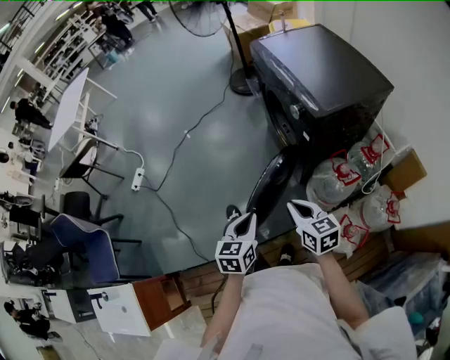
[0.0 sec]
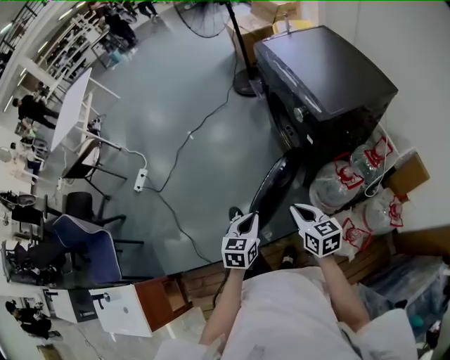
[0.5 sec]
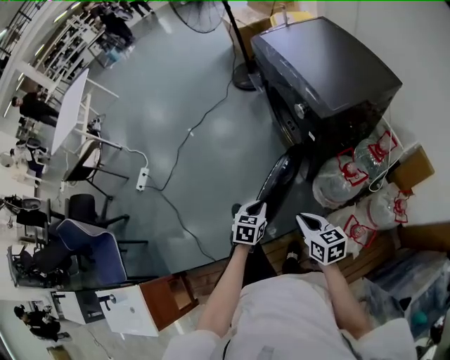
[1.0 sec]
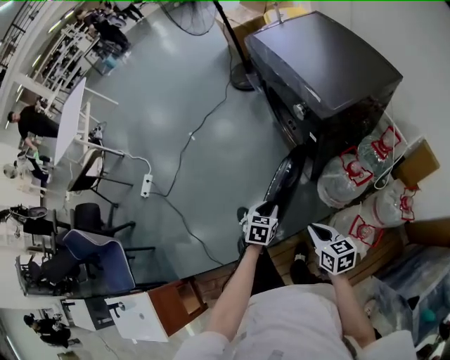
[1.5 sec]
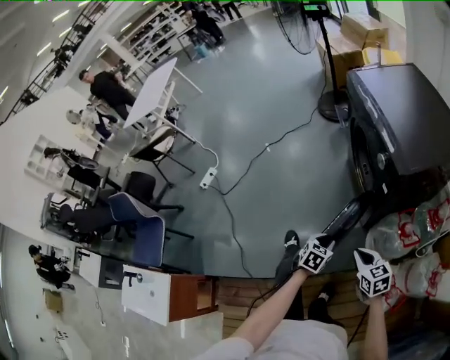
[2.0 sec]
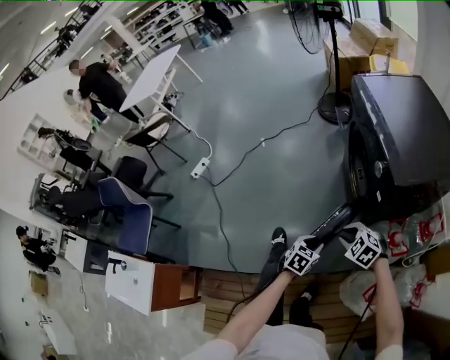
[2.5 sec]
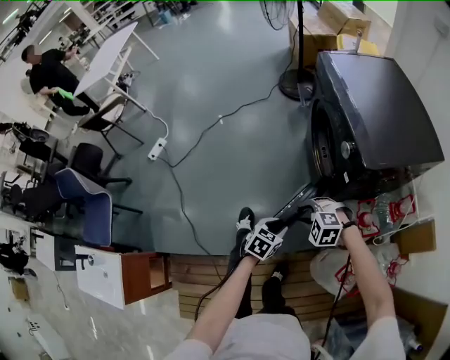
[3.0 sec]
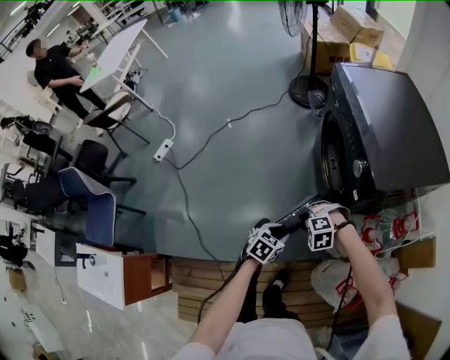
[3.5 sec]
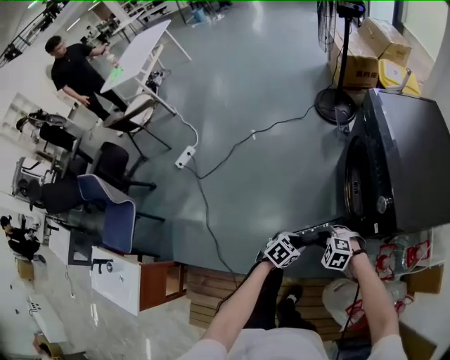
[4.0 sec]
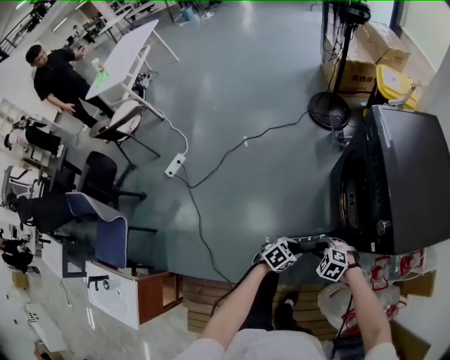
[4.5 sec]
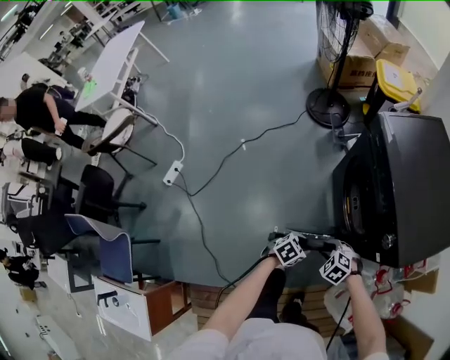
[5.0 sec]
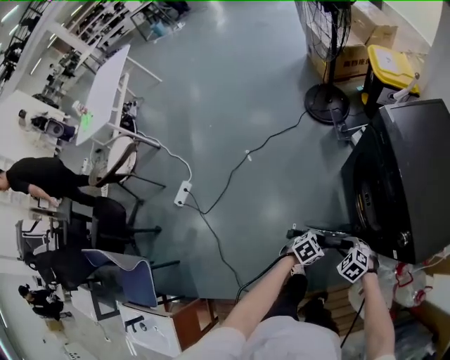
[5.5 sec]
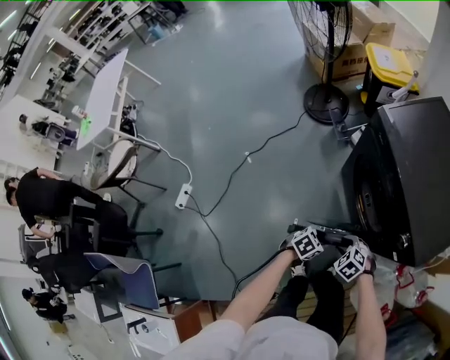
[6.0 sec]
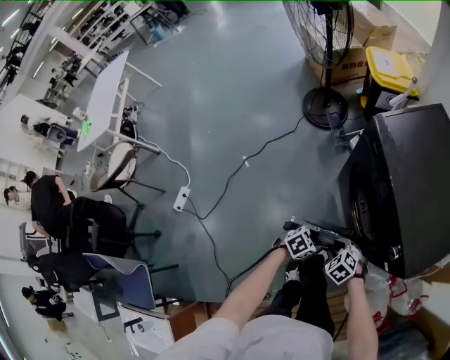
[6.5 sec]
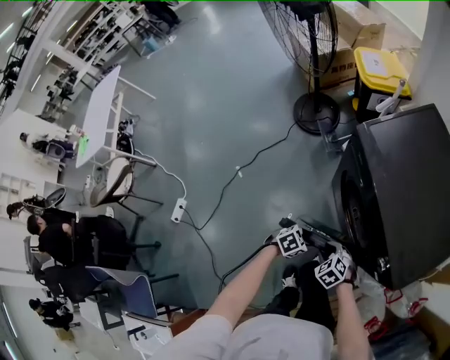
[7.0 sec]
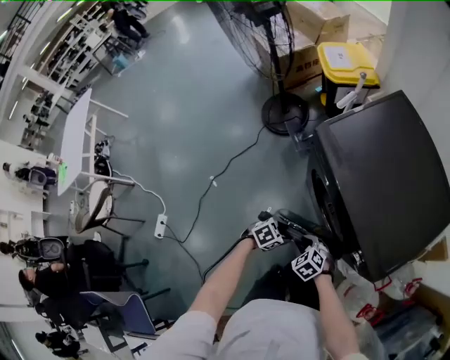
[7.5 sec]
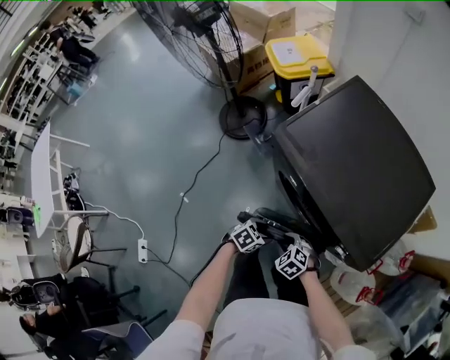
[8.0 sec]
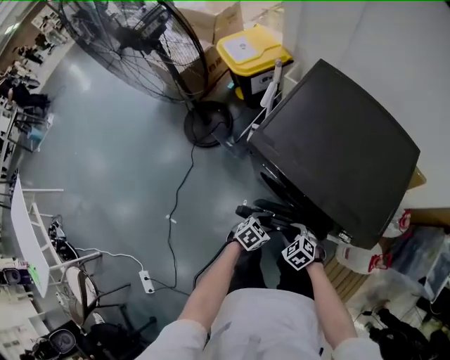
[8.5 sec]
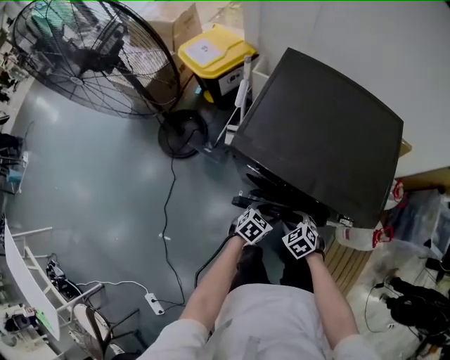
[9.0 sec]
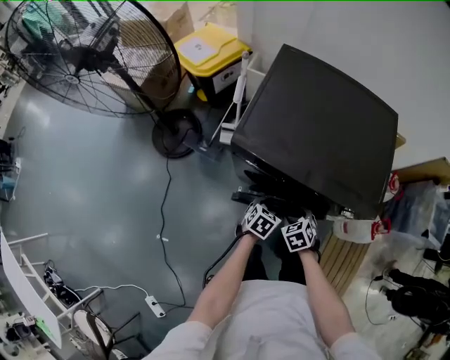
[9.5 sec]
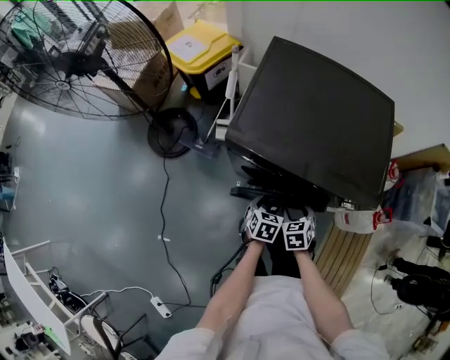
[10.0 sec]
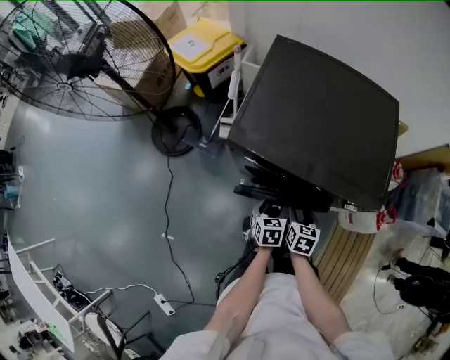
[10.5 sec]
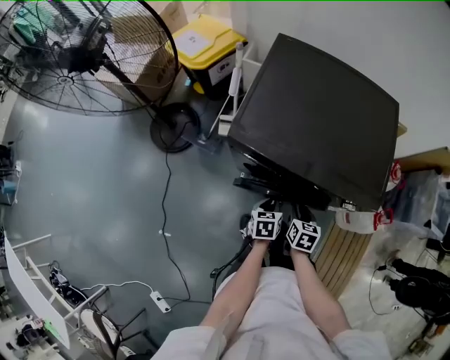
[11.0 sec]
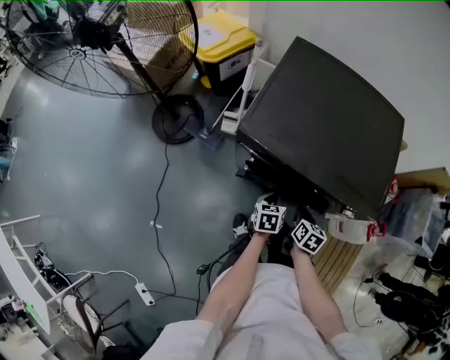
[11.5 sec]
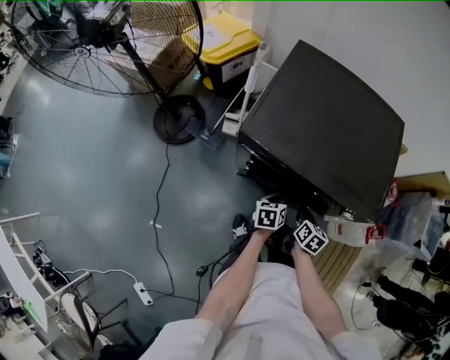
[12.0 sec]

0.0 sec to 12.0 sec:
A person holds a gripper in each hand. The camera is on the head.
0.0 sec to 2.0 sec: The left gripper travels downward and forward by roughly 15 cm, rotates some 30 degrees, and opens; the right gripper goes approximately 10 cm downward.
2.0 sec to 4.0 sec: The left gripper moves about 10 cm, while the right gripper changes place by approximately 20 cm, rotates around the line of its fingers by some 60 degrees, counterclockwise from behind, and opens its fingers.
4.0 sec to 6.0 sec: The right gripper ends up roughly 20 cm from where it was, and swivels about 40 degrees; the left gripper ends up about 20 cm from where it was, and turns by about 30 degrees.
6.0 sec to 8.0 sec: The right gripper changes place by roughly 15 cm, and swivels about 20 degrees. The left gripper moves some 15 cm, and turns by roughly 20 degrees.
8.0 sec to 10.0 sec: The right gripper shifts by approximately 10 cm, and rolls clockwise, seen from behind, by roughly 50 degrees; the left gripper moves about 10 cm.
10.0 sec to 12.0 sec: The right gripper is displaced to the right by some 5 cm, rolls clockwise, seen from behind, by some 40 degrees, and closes its fingers. The left gripper swivels about 30 degrees, and closes.

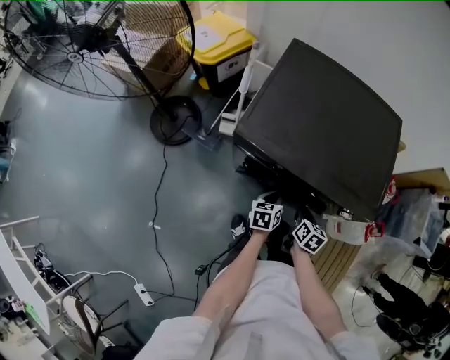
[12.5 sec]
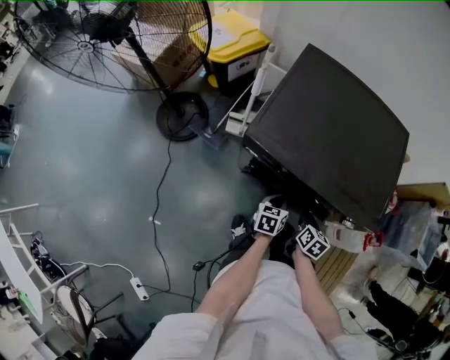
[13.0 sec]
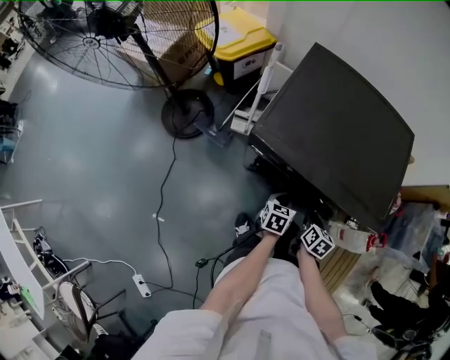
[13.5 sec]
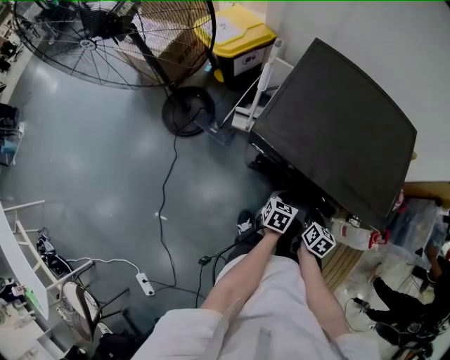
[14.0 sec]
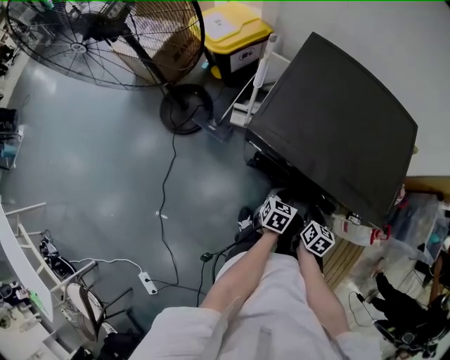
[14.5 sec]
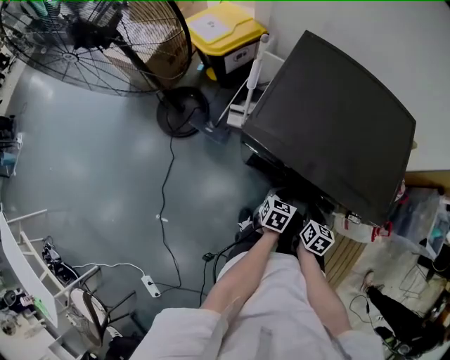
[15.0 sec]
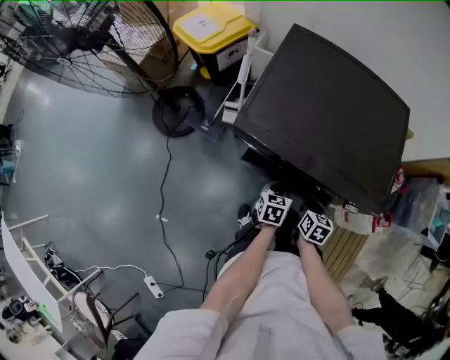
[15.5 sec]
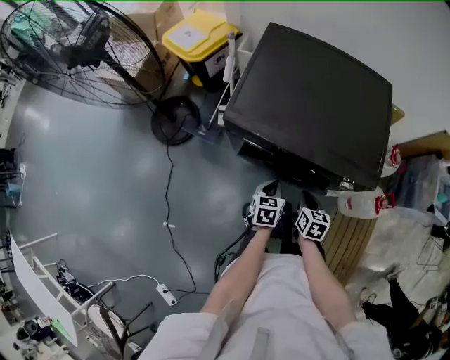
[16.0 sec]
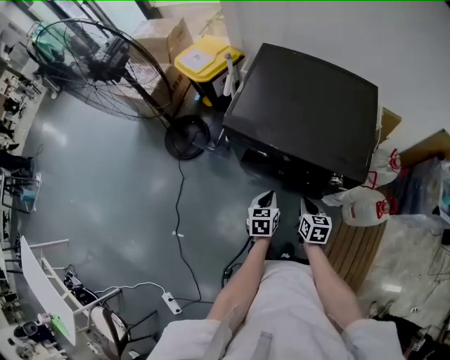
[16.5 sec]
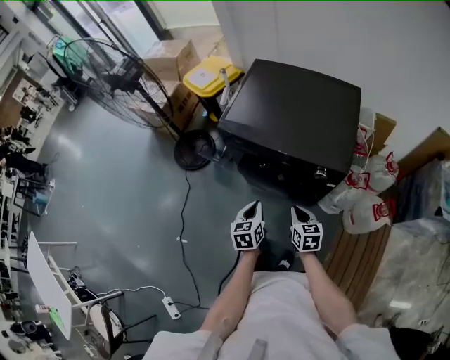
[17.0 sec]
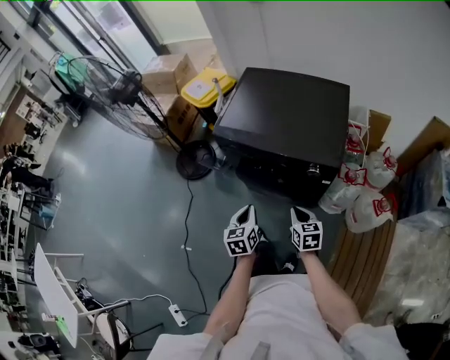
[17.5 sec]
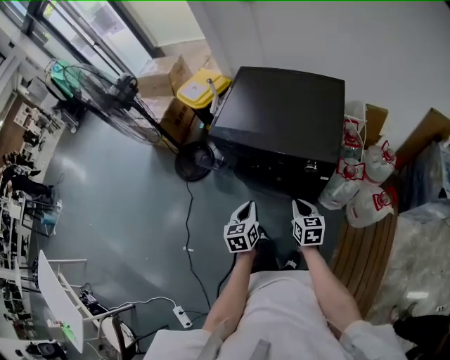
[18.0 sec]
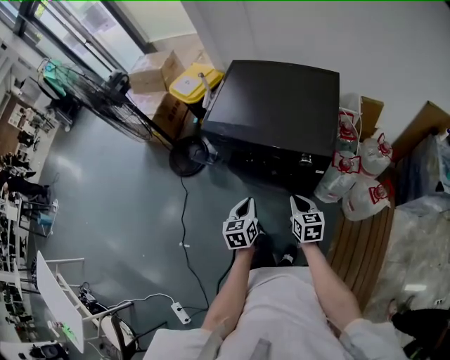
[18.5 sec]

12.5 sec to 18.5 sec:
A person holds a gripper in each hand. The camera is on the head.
12.5 sec to 14.5 sec: The grippers make only small movements.
14.5 sec to 16.5 sec: Both grippers travel together backward and upward, about 10 cm.
16.5 sec to 18.5 sec: Both grippers travel together backward and upward, approximately 10 cm.

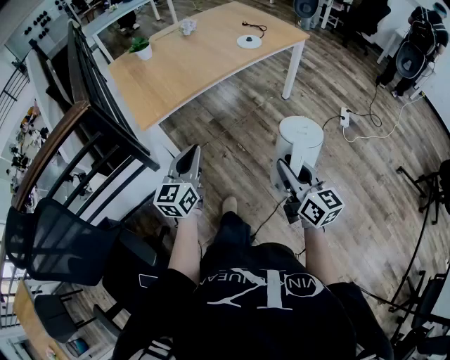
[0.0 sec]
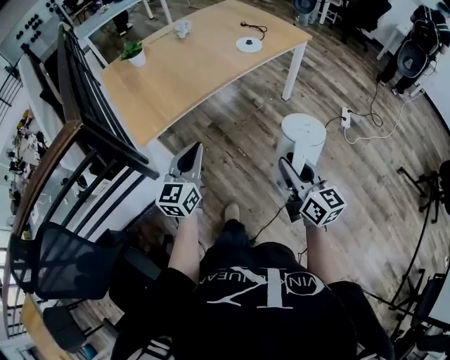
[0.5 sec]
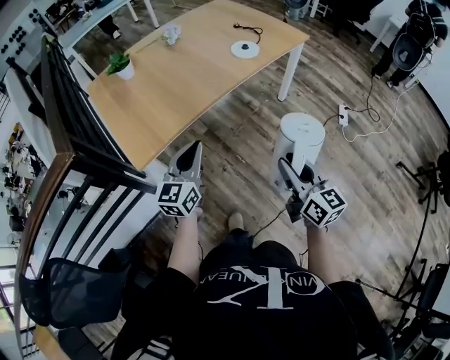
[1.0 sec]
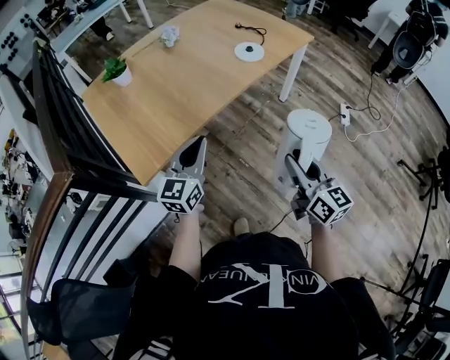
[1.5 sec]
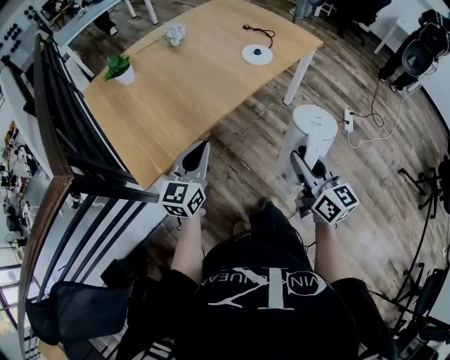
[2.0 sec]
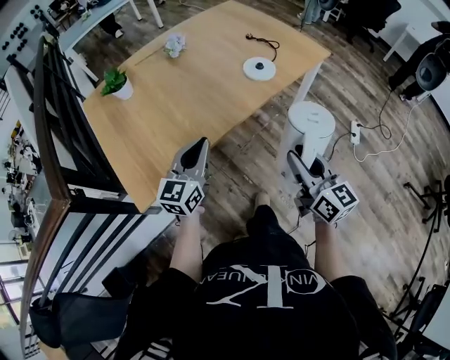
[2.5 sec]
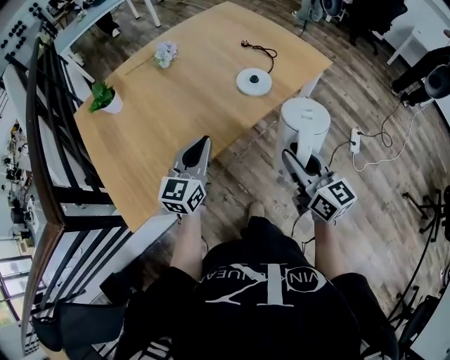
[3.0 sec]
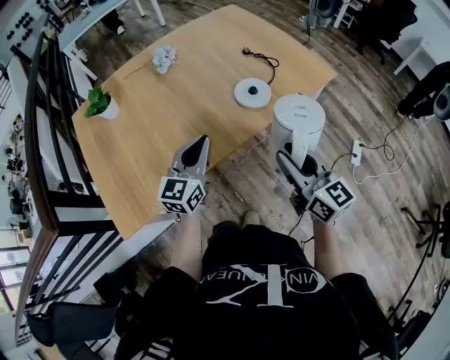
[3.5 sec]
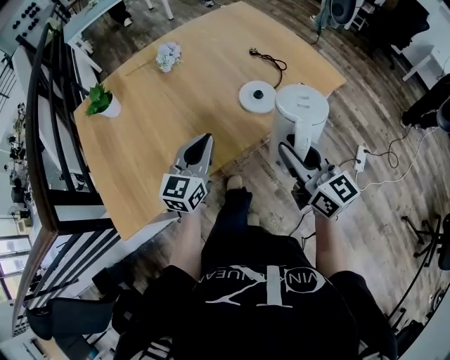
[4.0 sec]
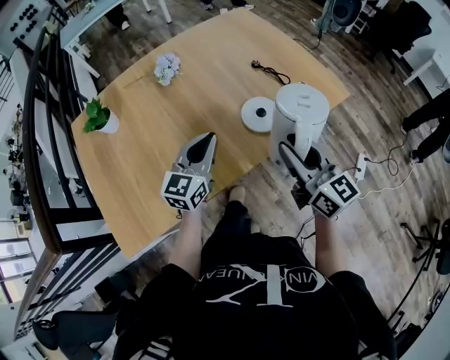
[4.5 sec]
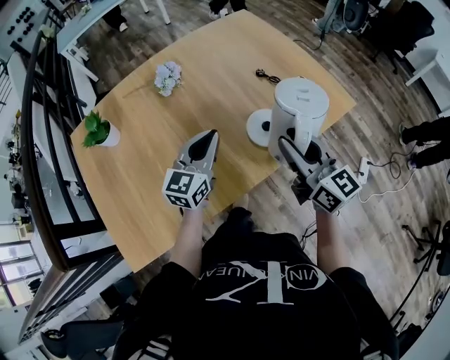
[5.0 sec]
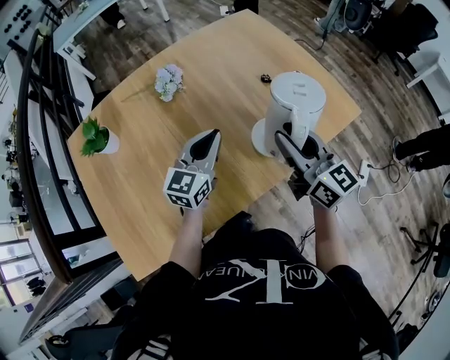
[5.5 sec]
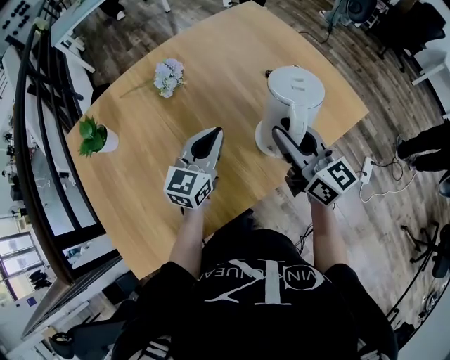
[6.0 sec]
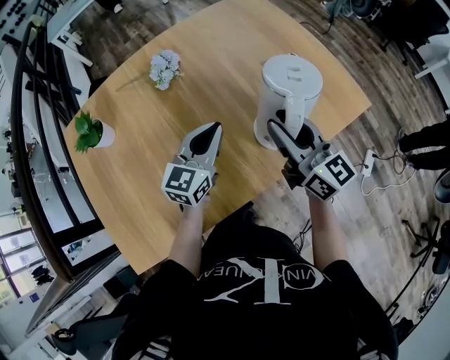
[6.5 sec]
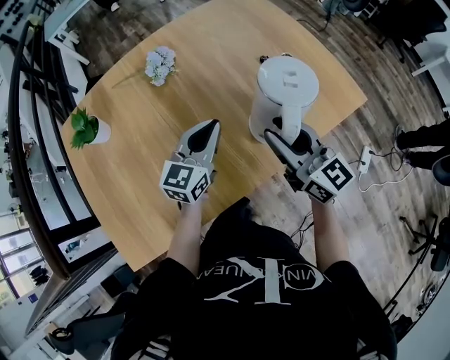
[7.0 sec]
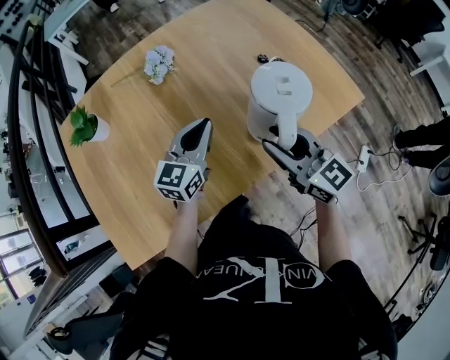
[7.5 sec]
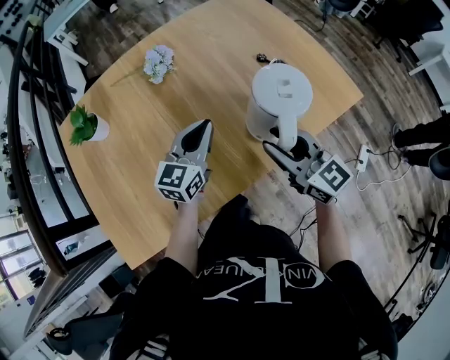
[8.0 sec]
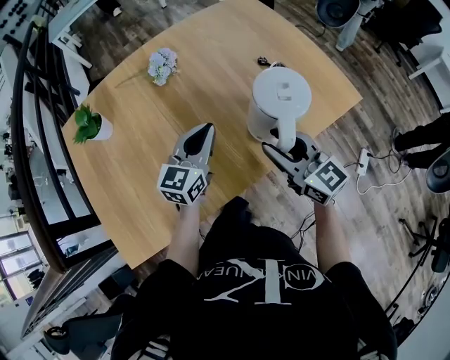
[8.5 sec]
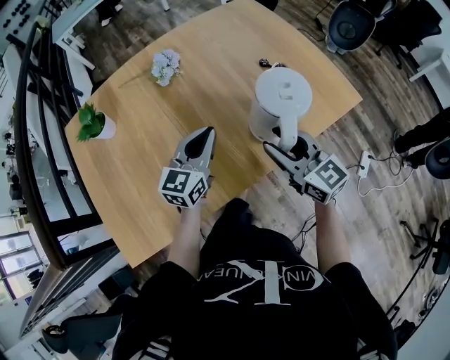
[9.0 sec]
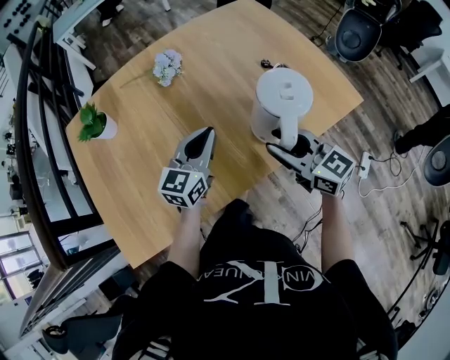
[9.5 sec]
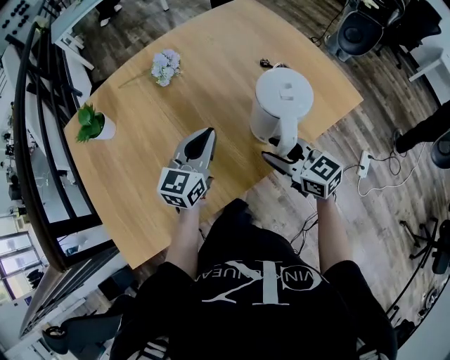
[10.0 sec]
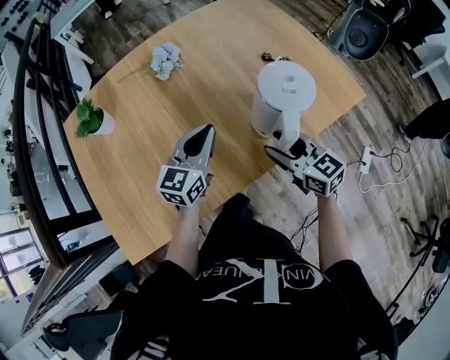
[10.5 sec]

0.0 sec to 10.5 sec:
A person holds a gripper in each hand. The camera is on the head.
0.0 sec to 2.0 sec: The two grippers go roughly 30 cm forward.
2.0 sec to 4.0 sec: The right gripper is displaced forward by some 30 cm. The left gripper shifts some 30 cm forward and to the right.
4.0 sec to 6.5 sec: The grippers both shift forward by approximately 20 cm.
6.5 sec to 8.5 sec: The right gripper moves backward, approximately 5 cm.
8.5 sec to 10.5 sec: The right gripper travels downward by approximately 10 cm.
